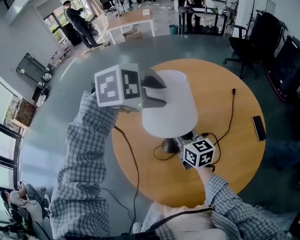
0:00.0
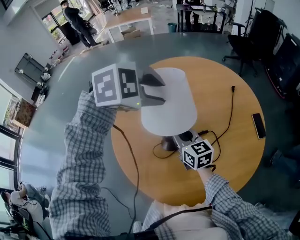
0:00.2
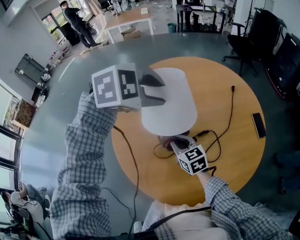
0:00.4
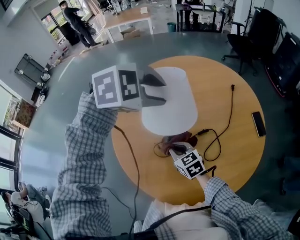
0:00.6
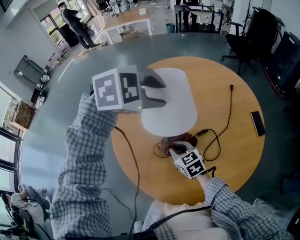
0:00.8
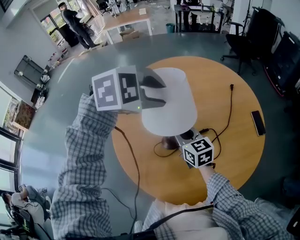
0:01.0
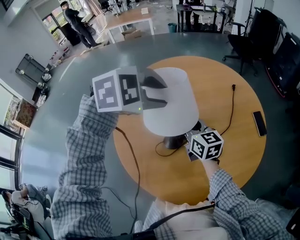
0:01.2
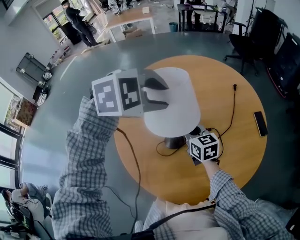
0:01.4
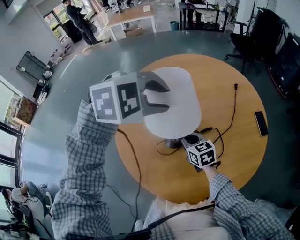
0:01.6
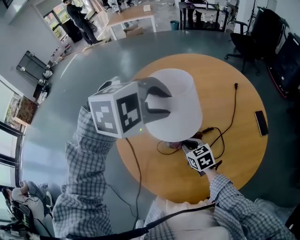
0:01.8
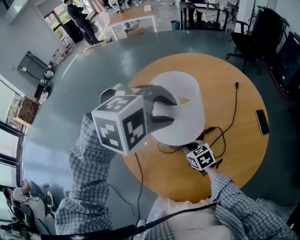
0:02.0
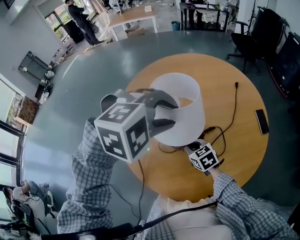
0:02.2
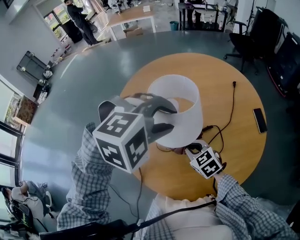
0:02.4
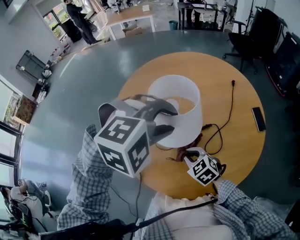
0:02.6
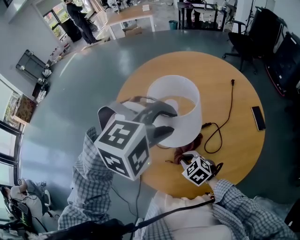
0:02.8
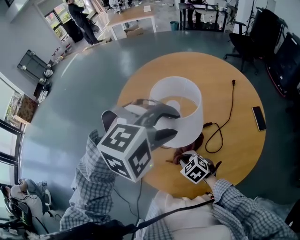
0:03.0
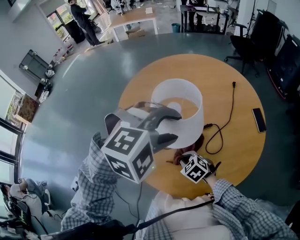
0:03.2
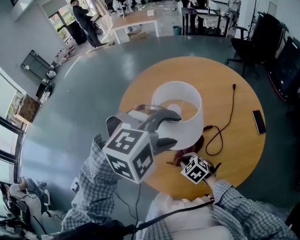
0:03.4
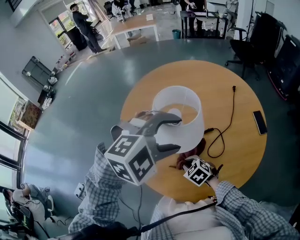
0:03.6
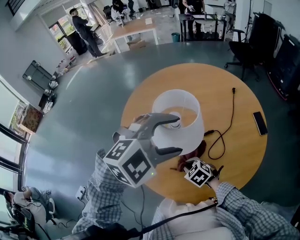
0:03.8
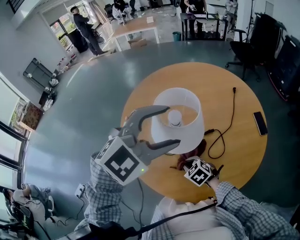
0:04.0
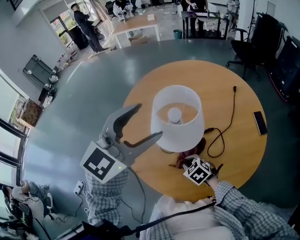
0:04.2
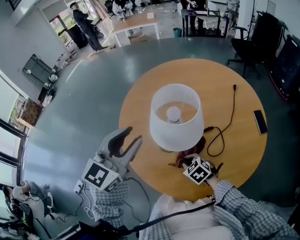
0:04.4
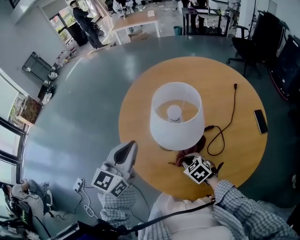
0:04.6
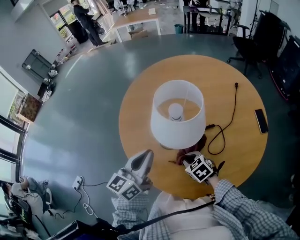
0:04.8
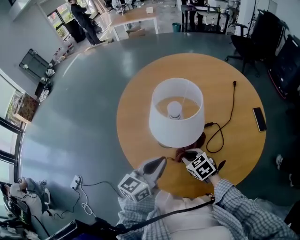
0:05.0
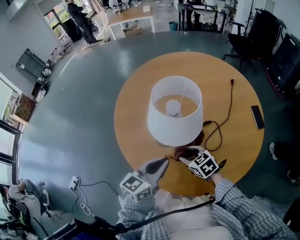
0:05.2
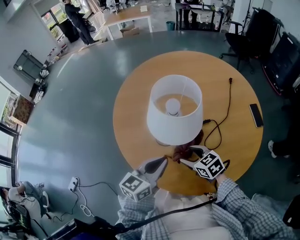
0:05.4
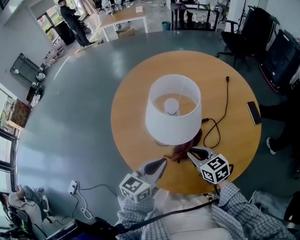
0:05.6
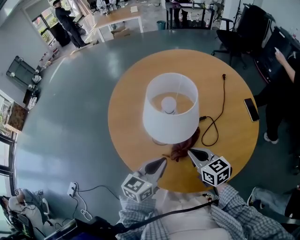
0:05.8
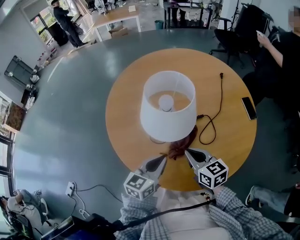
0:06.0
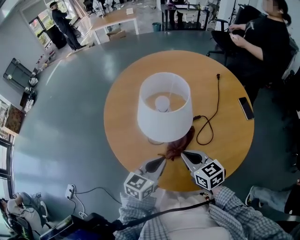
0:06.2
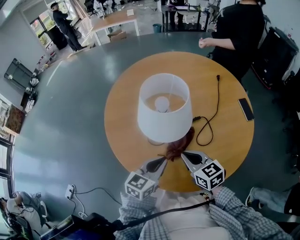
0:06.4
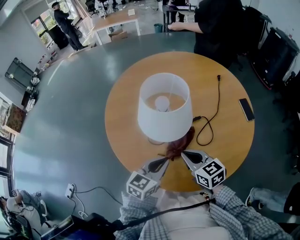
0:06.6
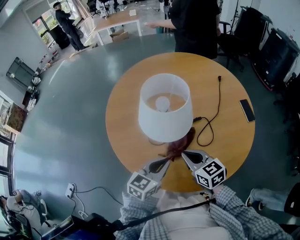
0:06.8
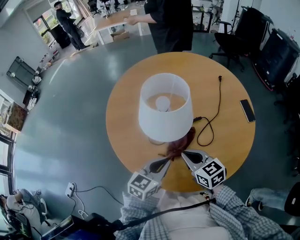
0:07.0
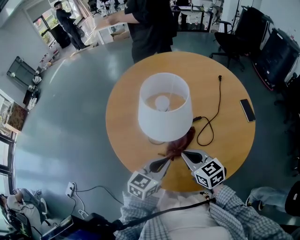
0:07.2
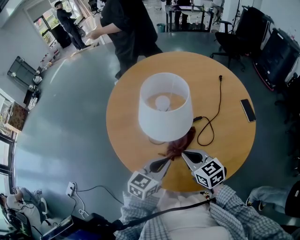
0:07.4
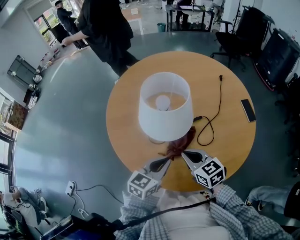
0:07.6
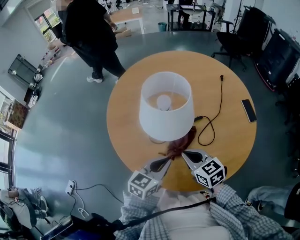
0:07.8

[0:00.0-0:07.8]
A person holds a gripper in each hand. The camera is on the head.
0:00.0 to 0:01.6: The right gripper swings up and down, about 15 cm each way, with 2 reversals, and changes its angle by some 20 degrees.
0:01.6 to 0:03.2: The right gripper travels backward and downward by approximately 15 cm, and turns by some 40 degrees. Meanwhile the left gripper moves backward, roughly 10 cm.
0:03.2 to 0:04.6: The left gripper travels to the left by about 15 cm, angles its fingers upward, by some 40 degrees, and closes.
0:04.6 to 0:06.2: The right gripper moves upward, roughly 10 cm, changes its angle by some 40 degrees, and opens and closes again, while the left gripper moves downward, to the right and backward, roughly 20 cm, and swivels about 30 degrees.
0:06.2 to 0:07.8: The grippers move only a little.

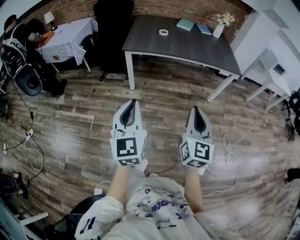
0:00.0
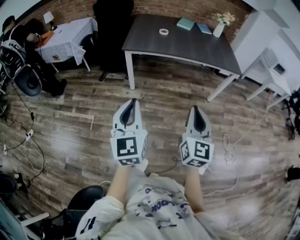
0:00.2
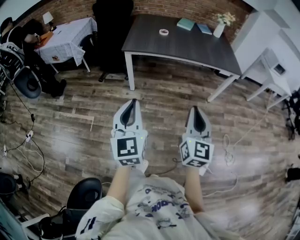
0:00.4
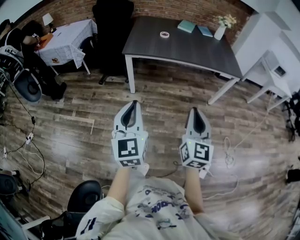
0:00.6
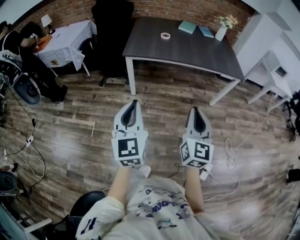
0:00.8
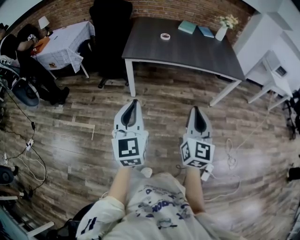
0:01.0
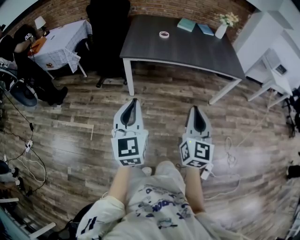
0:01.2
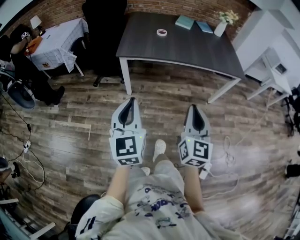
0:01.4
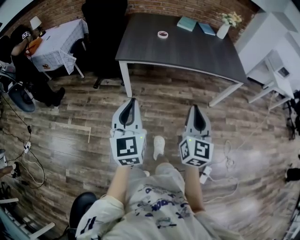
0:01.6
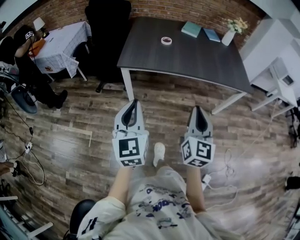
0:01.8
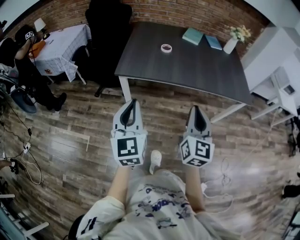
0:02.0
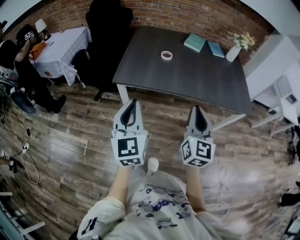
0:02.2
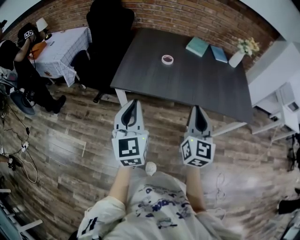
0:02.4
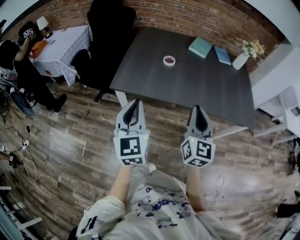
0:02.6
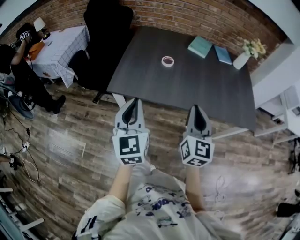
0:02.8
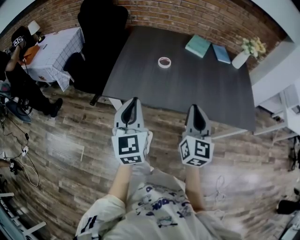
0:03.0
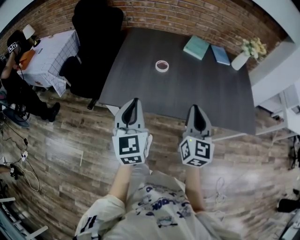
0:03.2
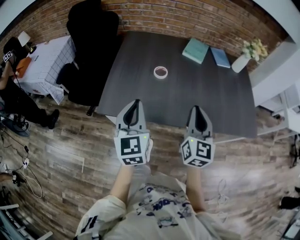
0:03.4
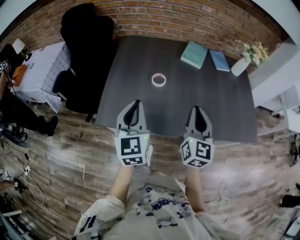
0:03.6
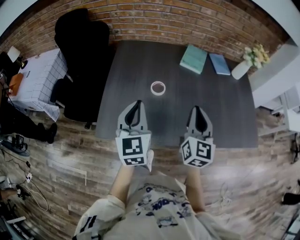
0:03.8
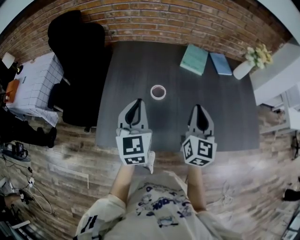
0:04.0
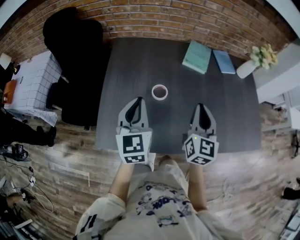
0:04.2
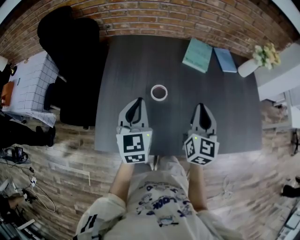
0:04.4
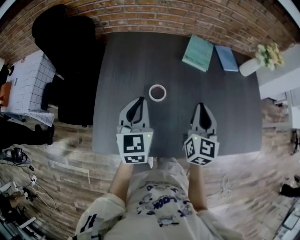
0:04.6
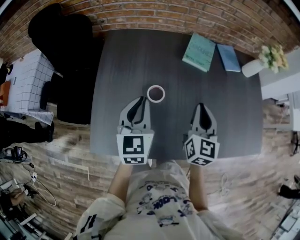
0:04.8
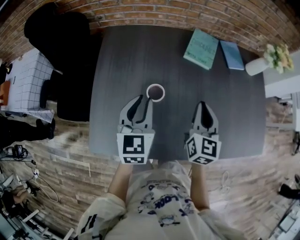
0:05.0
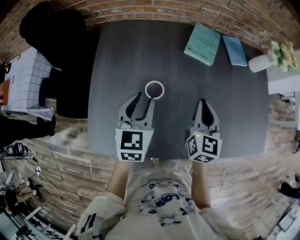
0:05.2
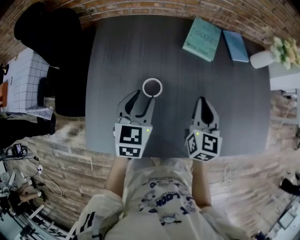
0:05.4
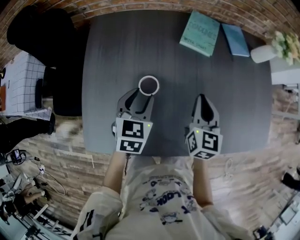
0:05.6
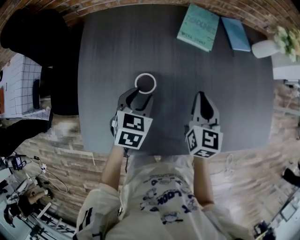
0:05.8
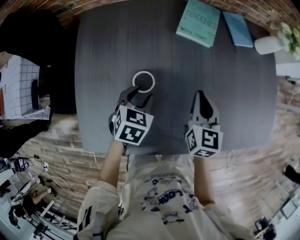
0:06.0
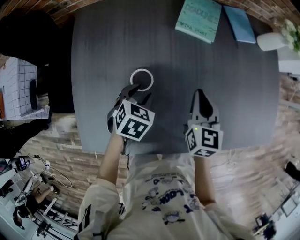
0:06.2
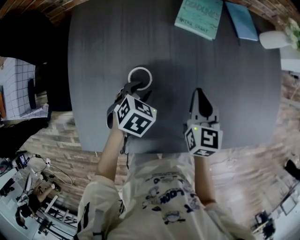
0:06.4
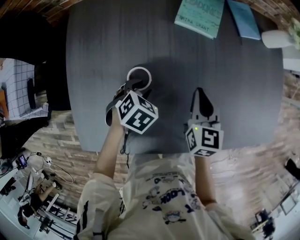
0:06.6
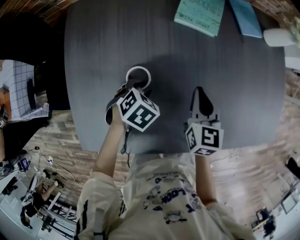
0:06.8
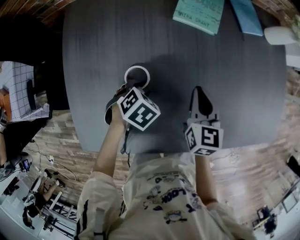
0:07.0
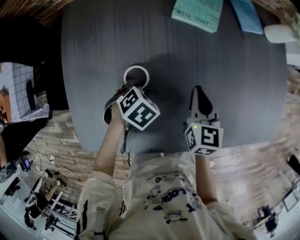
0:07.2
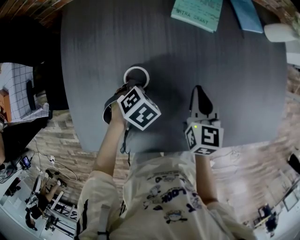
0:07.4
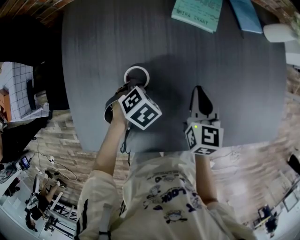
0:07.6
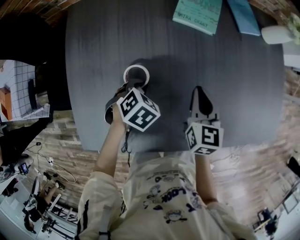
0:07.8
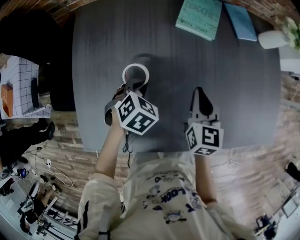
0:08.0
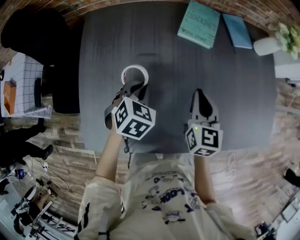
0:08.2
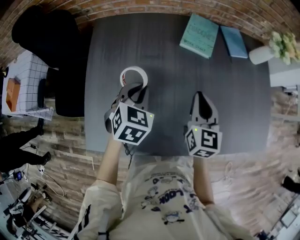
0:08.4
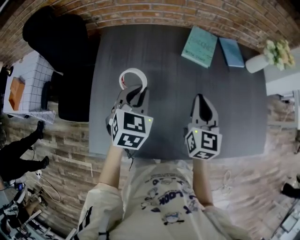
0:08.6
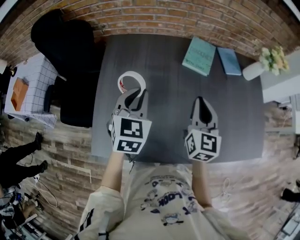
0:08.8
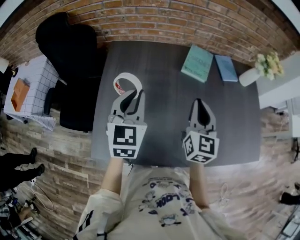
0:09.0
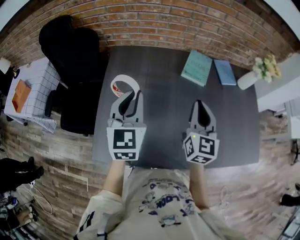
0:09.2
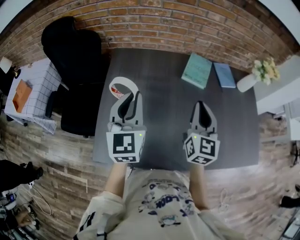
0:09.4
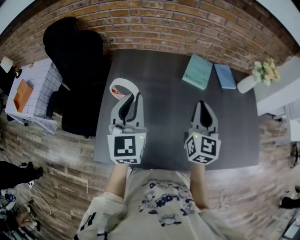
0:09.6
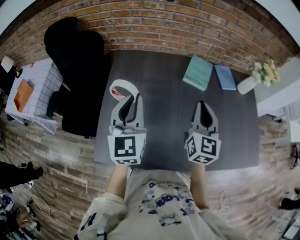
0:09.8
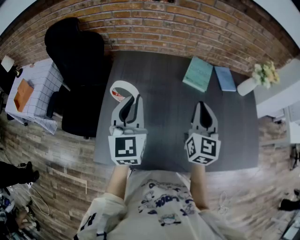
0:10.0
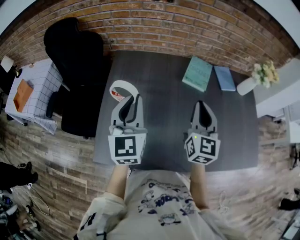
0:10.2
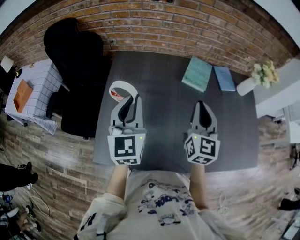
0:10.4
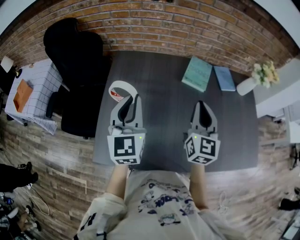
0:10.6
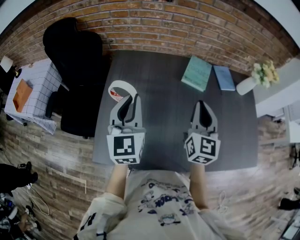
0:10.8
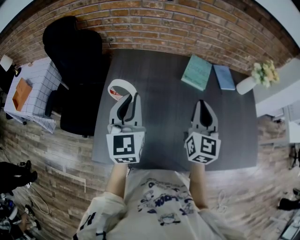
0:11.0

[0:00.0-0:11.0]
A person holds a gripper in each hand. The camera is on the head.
0:00.0 to 0:01.6: The two grippers go some 20 cm forward.
0:01.6 to 0:03.2: The two grippers travel together, forward, roughly 40 cm.
0:03.2 to 0:04.8: The two grippers go roughly 35 cm forward.
0:04.8 to 0:06.2: The right gripper travels downward and forward by some 15 cm; the left gripper shifts approximately 20 cm downward, points its fingers roughly 50 degrees further downward, and opens its fingers.
0:06.2 to 0:07.8: The left gripper closes its fingers.
0:07.8 to 0:09.4: The right gripper goes some 25 cm upward, and rotates about 30 degrees, while the left gripper travels upward by some 35 cm, and tilts its fingers some 70 degrees upward.
0:09.4 to 0:11.0: The grippers make only small movements.

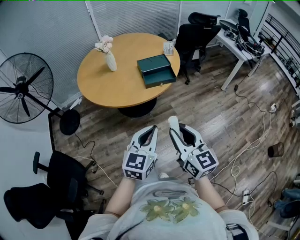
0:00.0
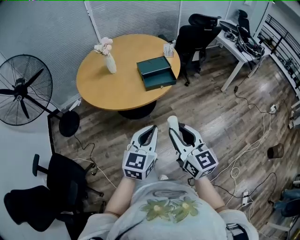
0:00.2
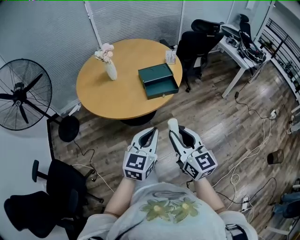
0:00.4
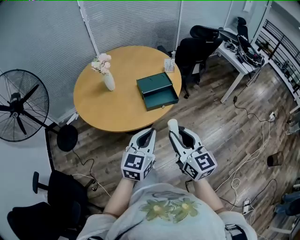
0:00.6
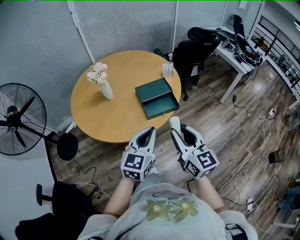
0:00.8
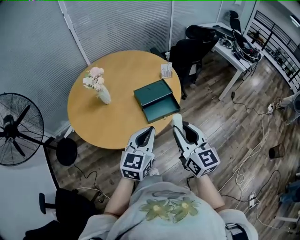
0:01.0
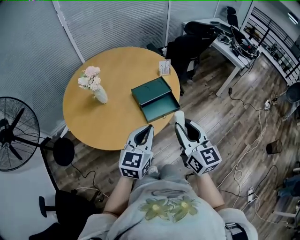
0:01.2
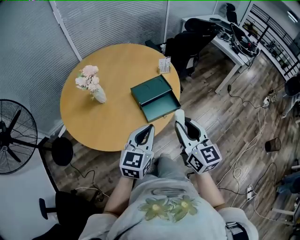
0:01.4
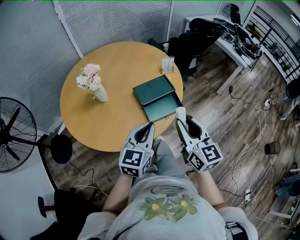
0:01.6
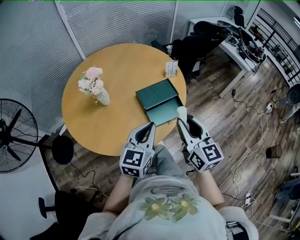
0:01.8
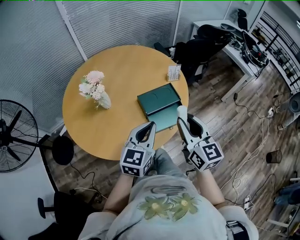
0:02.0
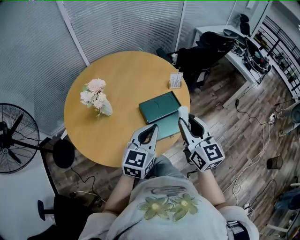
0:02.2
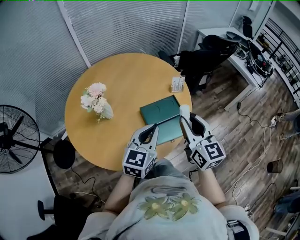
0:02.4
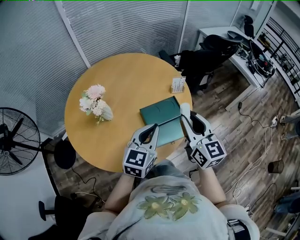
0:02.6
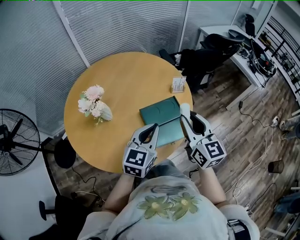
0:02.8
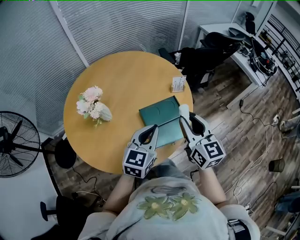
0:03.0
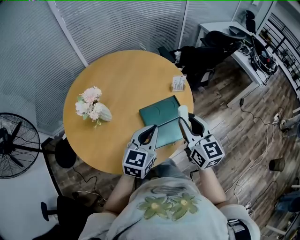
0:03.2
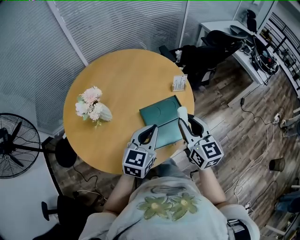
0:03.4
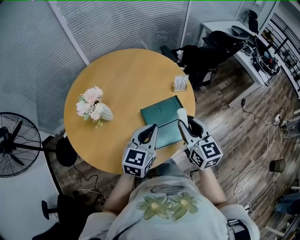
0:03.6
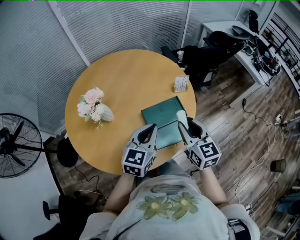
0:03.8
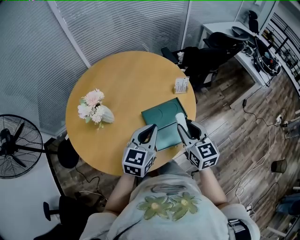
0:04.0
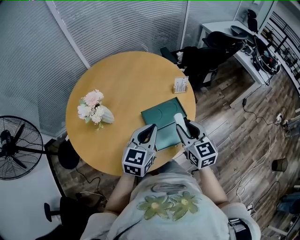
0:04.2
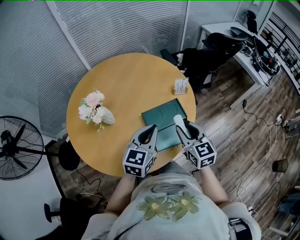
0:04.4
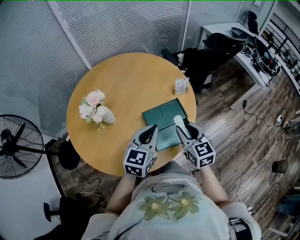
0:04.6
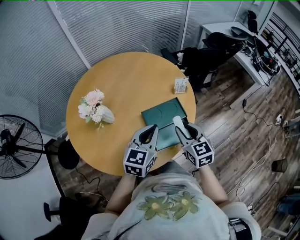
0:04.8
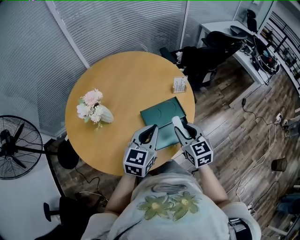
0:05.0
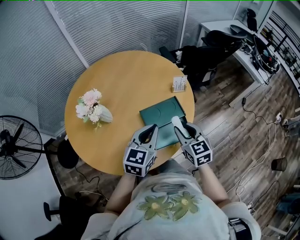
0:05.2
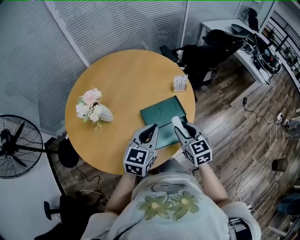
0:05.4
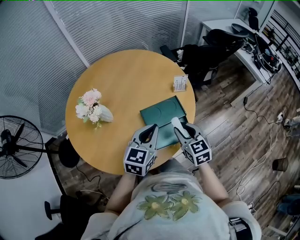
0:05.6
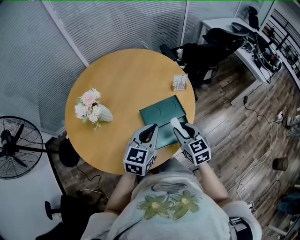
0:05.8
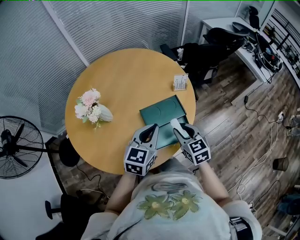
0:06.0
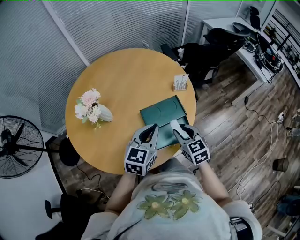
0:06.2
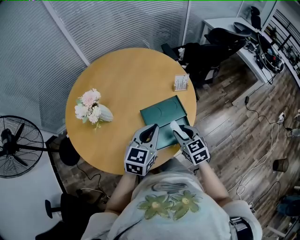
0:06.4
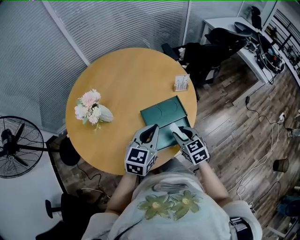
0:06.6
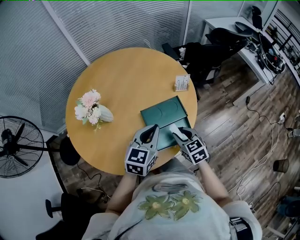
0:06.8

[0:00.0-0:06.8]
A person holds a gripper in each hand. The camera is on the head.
0:00.0 to 0:01.4: Both grippers travel together forward, roughly 35 cm.
0:01.4 to 0:02.8: The two grippers go about 20 cm forward.
0:02.8 to 0:04.0: The right gripper moves downward, approximately 10 cm.
0:04.0 to 0:05.4: The right gripper is displaced downward by approximately 5 cm.
0:05.4 to 0:06.8: The right gripper is displaced downward by approximately 10 cm.
